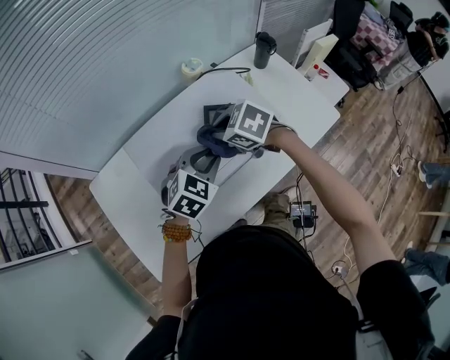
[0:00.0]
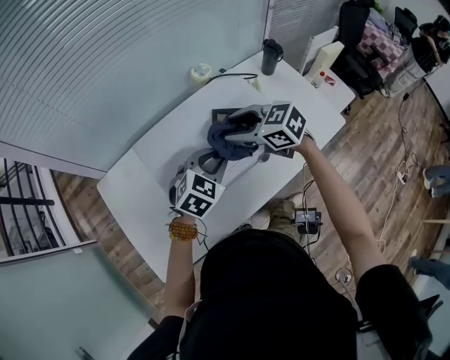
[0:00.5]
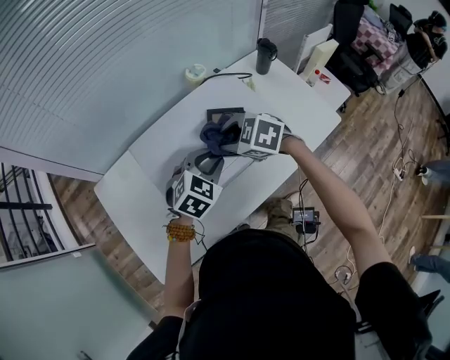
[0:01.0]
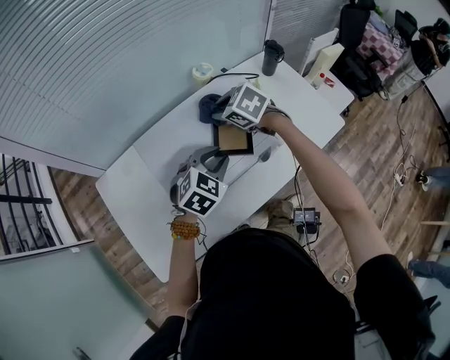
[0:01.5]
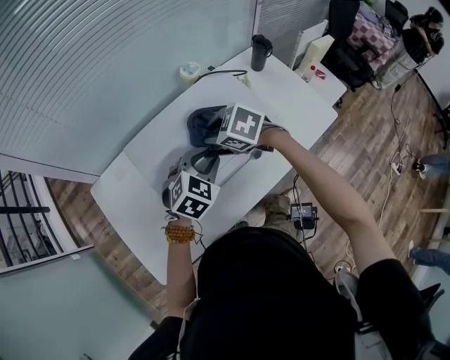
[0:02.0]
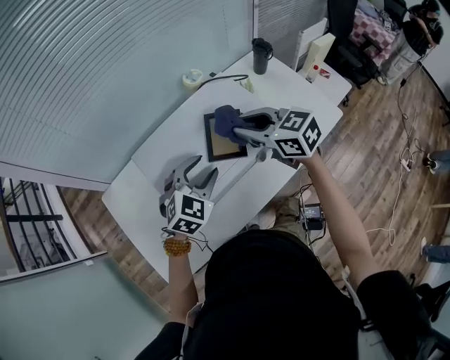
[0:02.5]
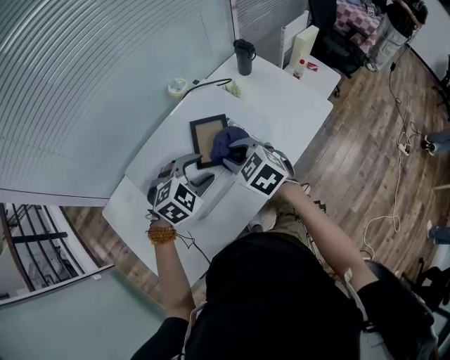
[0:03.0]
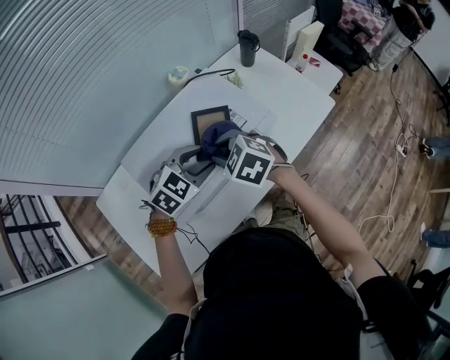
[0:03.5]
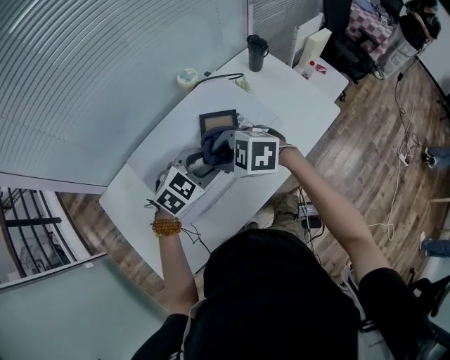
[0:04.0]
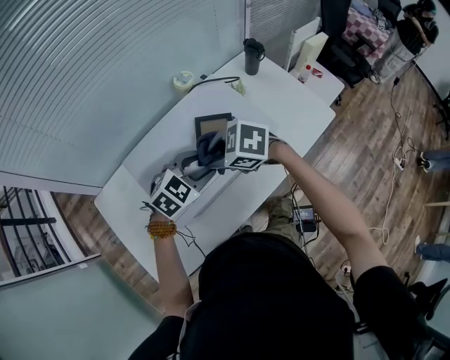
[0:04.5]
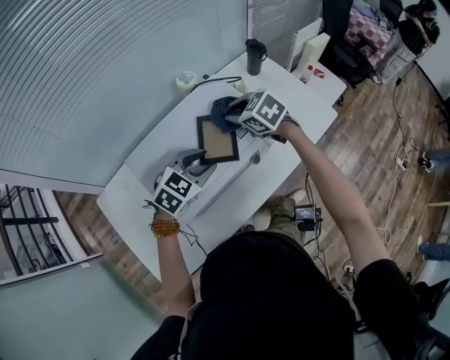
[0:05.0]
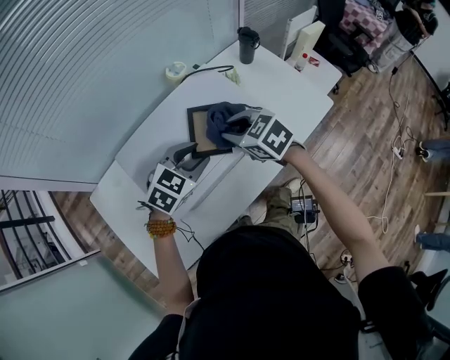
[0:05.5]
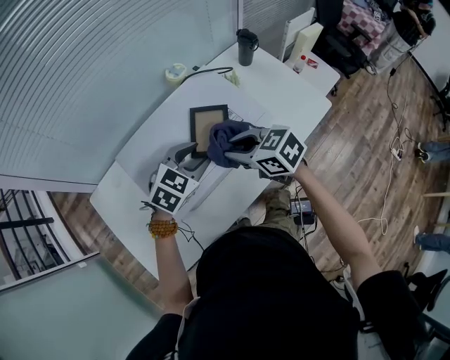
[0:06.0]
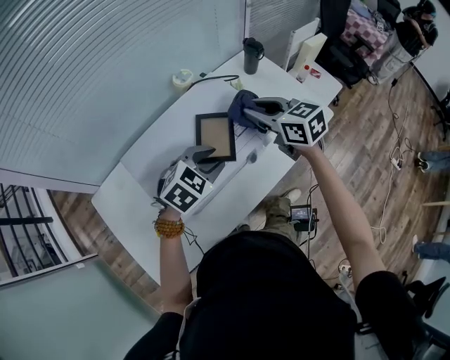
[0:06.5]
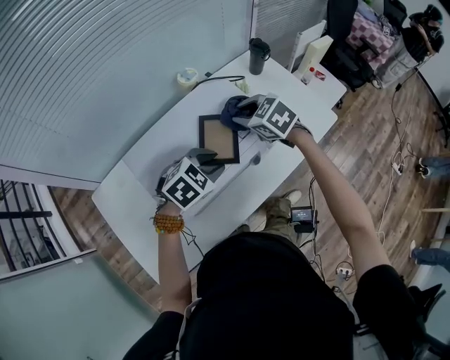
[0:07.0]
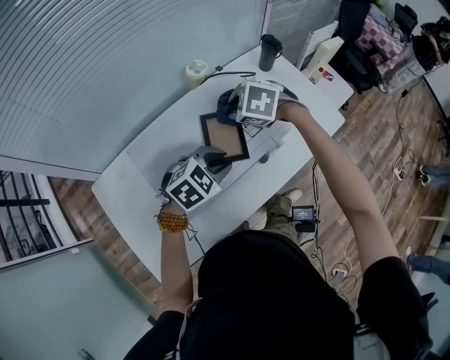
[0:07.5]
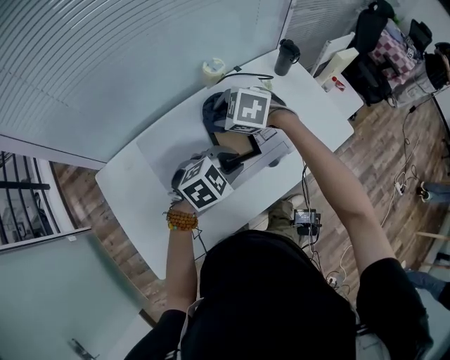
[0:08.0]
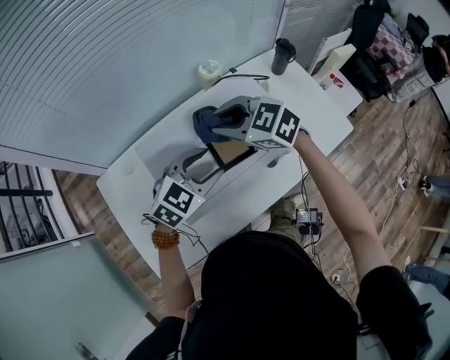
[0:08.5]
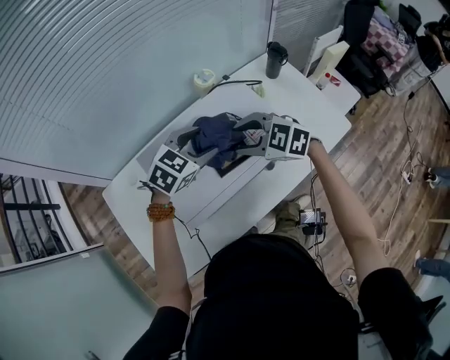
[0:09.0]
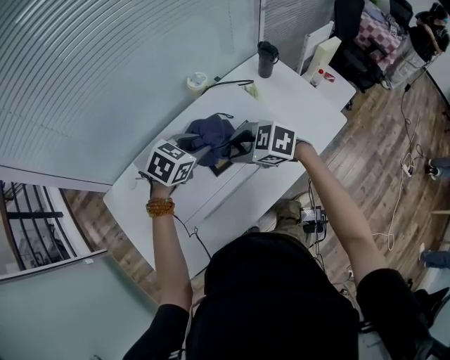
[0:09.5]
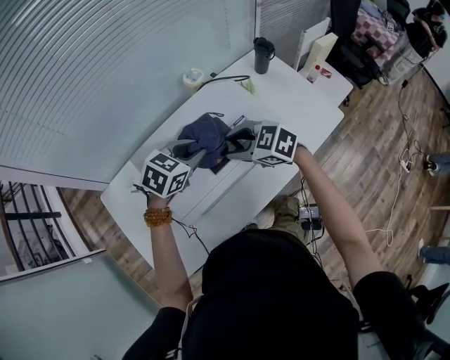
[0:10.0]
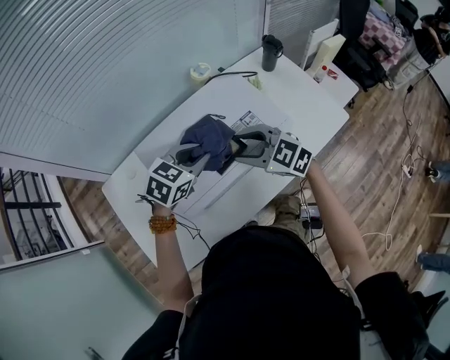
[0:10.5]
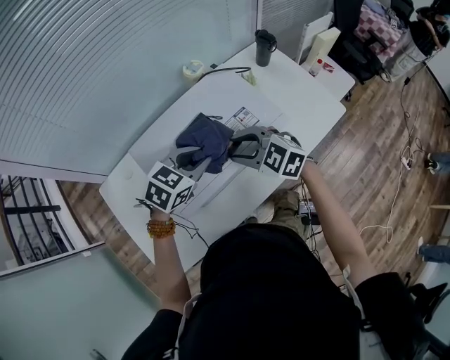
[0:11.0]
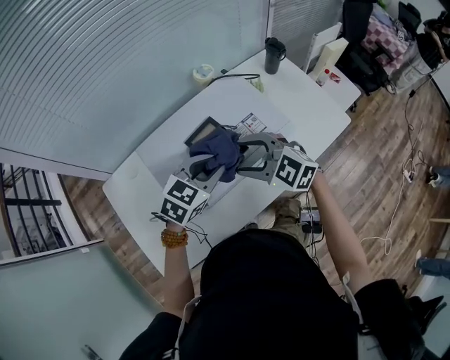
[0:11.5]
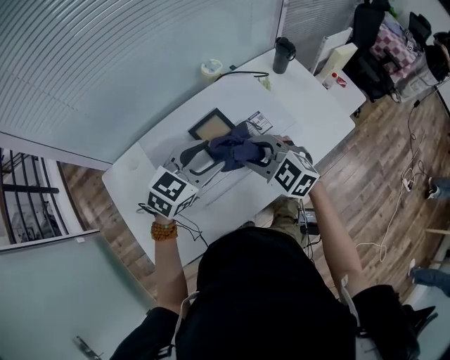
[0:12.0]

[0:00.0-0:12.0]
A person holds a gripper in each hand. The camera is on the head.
0:00.0 to 0:02.0: The right gripper goes forward and returns, some 5 cm each way, and opens, then closes once more.
0:02.0 to 0:04.0: The right gripper moves approximately 10 cm upward and comes back.
0:04.0 to 0:06.0: The right gripper changes its angle by about 40 degrees.
0:06.0 to 0:08.0: The right gripper shifts by approximately 15 cm, and rotates some 40 degrees.
0:08.0 to 0:10.0: The left gripper changes place by approximately 10 cm, and opens, then closes again, while the right gripper shifts by approximately 10 cm, and changes its angle by about 20 degrees.
0:10.0 to 0:12.0: The left gripper moves backward, some 5 cm, and opens. The right gripper swivels approximately 20 degrees.

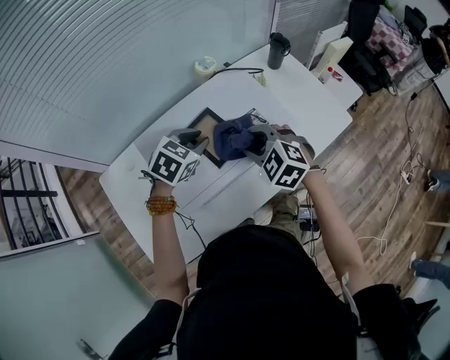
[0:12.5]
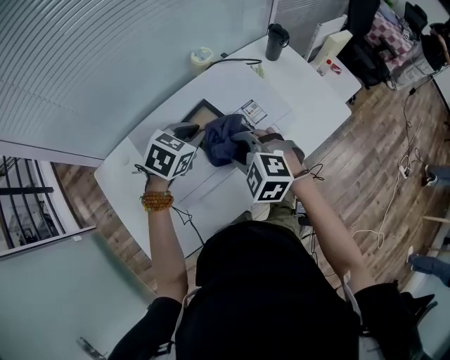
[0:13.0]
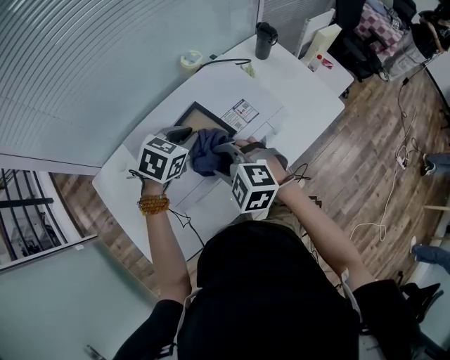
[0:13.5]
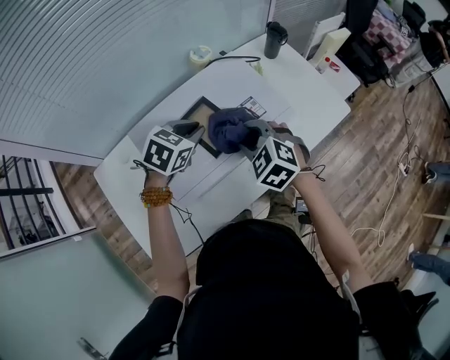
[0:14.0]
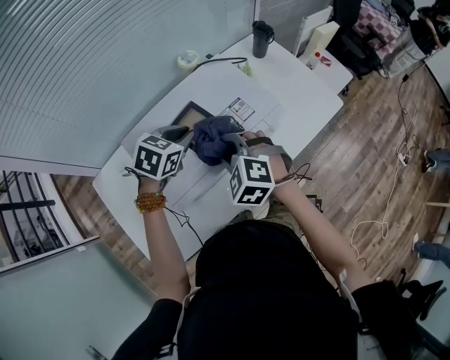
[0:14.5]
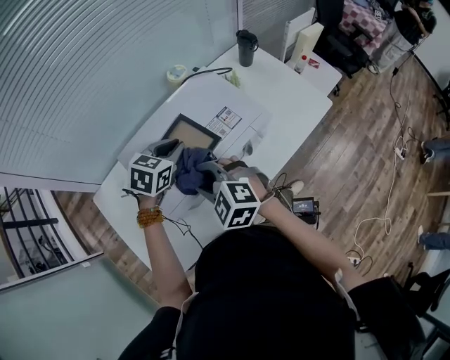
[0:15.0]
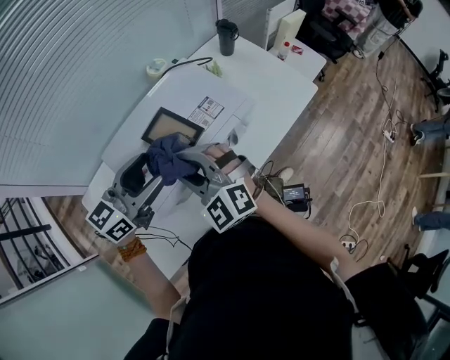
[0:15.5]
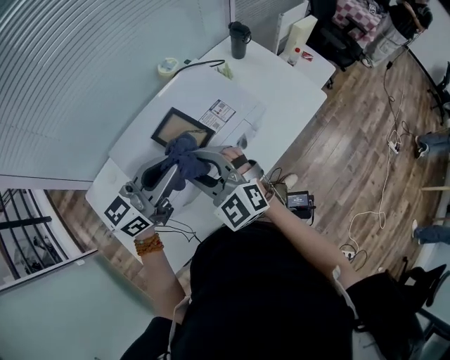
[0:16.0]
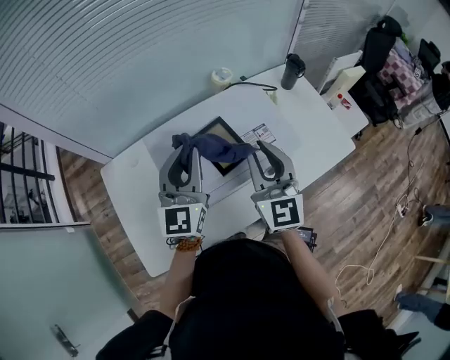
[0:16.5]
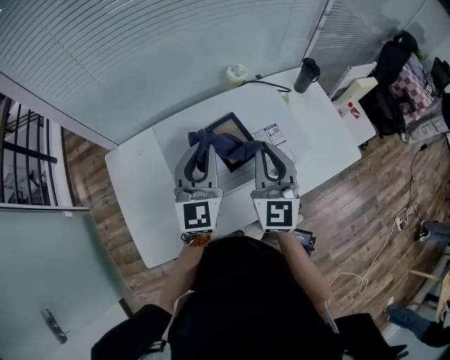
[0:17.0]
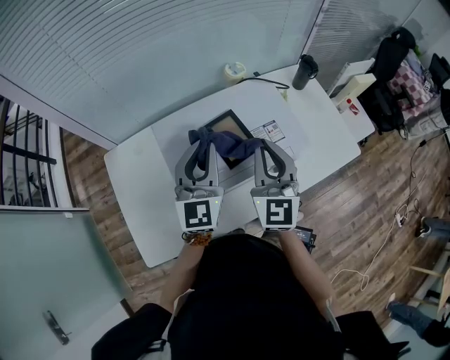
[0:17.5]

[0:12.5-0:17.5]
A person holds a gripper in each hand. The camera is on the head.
0:12.5 to 0:15.0: The right gripper swings left and right, roughly 10 cm each way, with 2 reversals.
0:15.0 to 0:17.5: The right gripper shifts some 15 cm upward, to the right and forward, and angles its fingers upward, by some 40 degrees. Meanwhile the left gripper heads upward and backward, covering approximately 15 cm, points its fingers roughly 50 degrees further upward, and opens, then closes again.

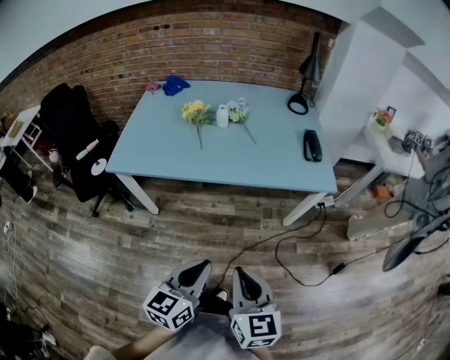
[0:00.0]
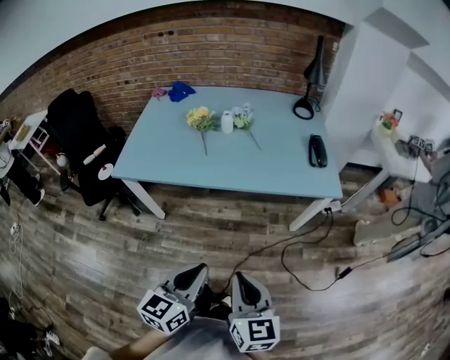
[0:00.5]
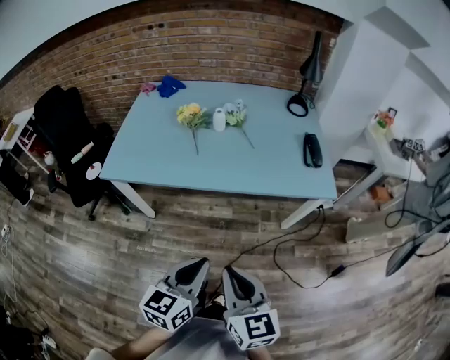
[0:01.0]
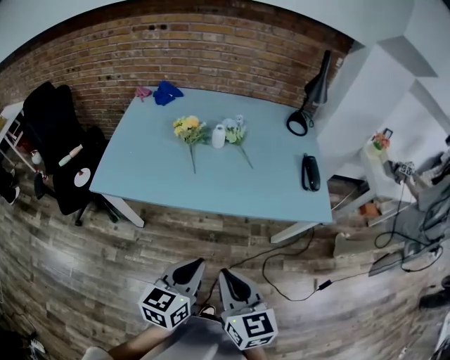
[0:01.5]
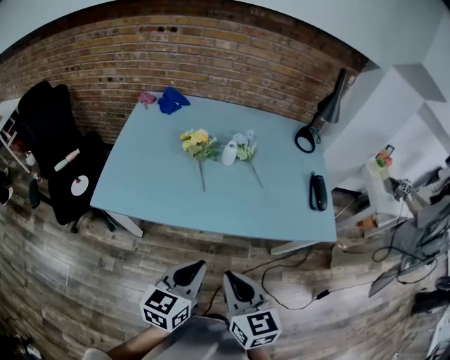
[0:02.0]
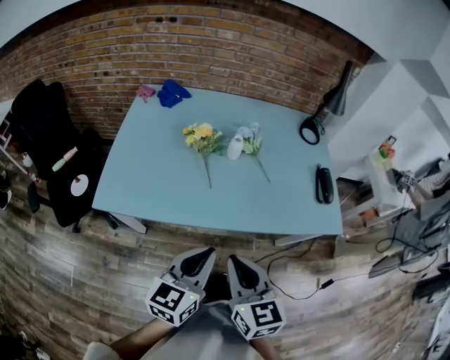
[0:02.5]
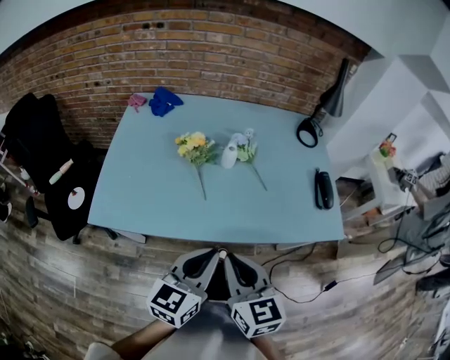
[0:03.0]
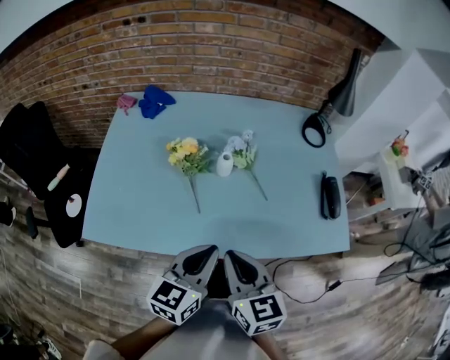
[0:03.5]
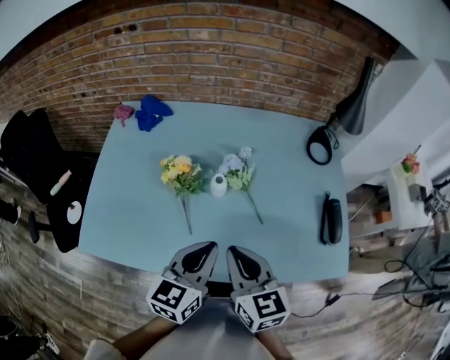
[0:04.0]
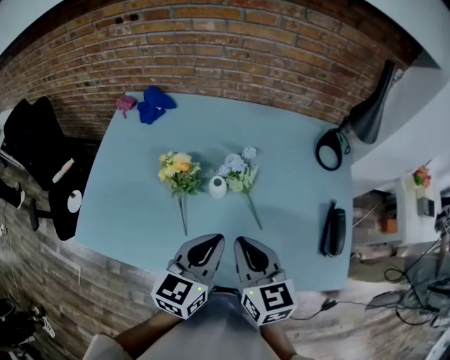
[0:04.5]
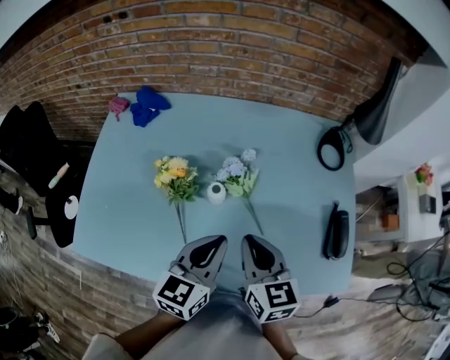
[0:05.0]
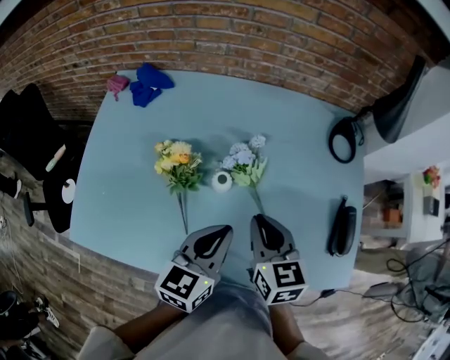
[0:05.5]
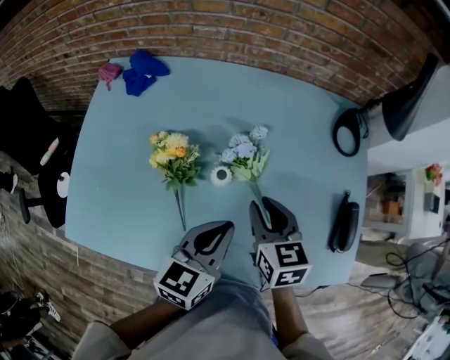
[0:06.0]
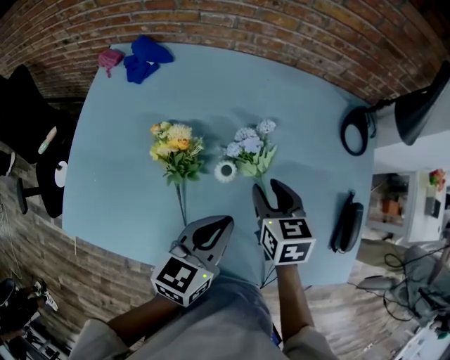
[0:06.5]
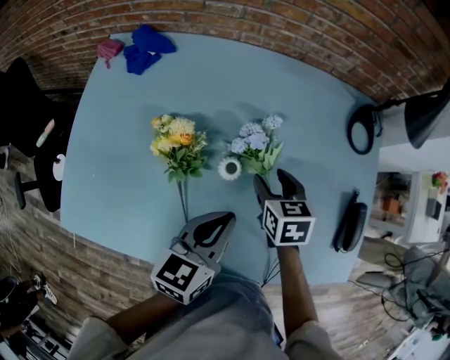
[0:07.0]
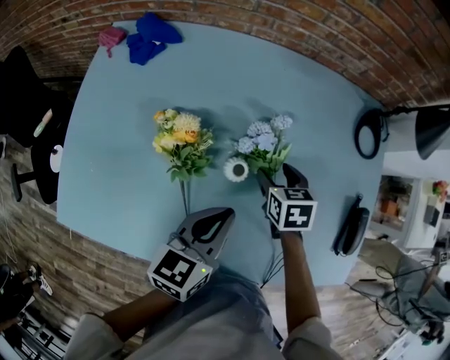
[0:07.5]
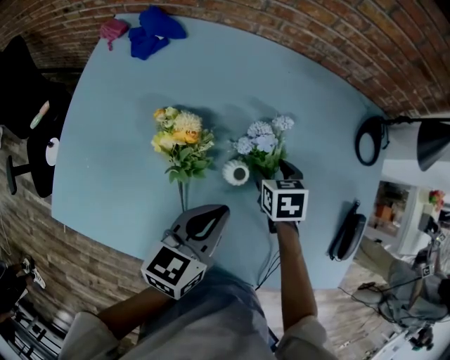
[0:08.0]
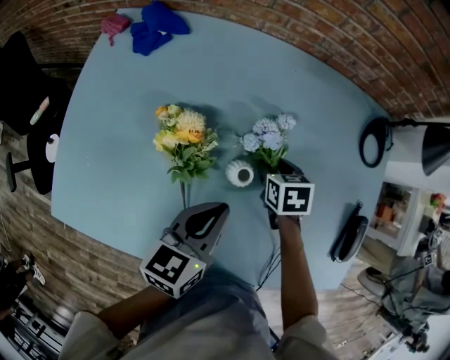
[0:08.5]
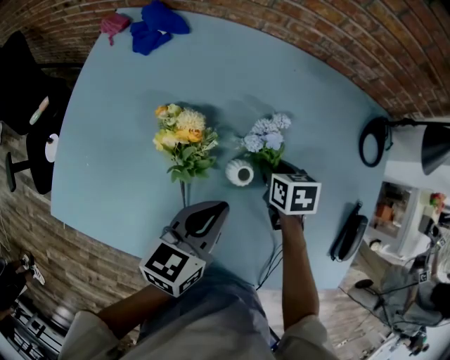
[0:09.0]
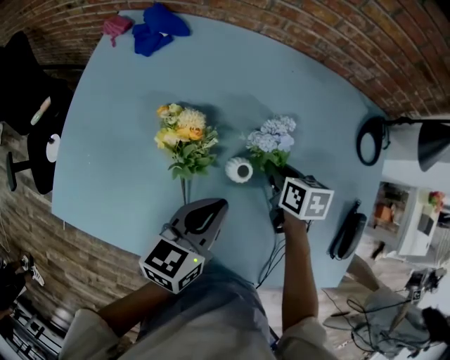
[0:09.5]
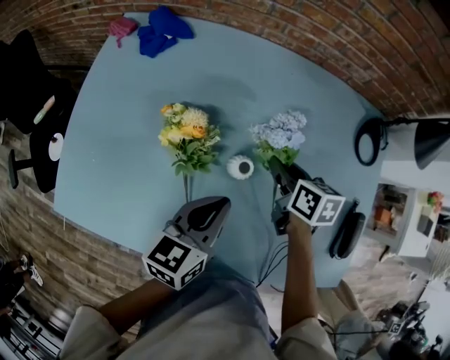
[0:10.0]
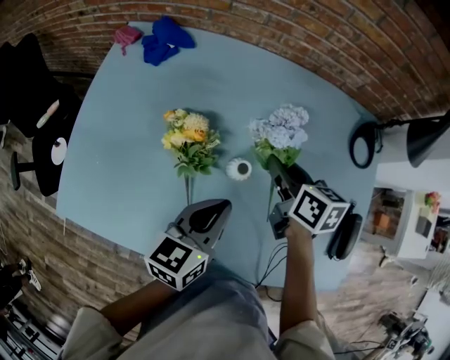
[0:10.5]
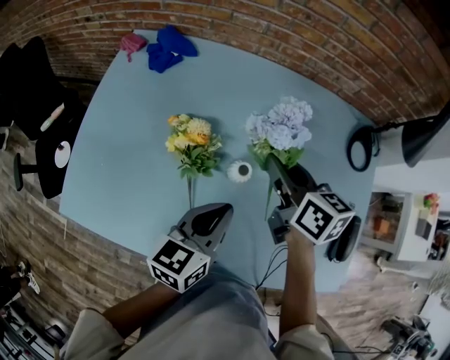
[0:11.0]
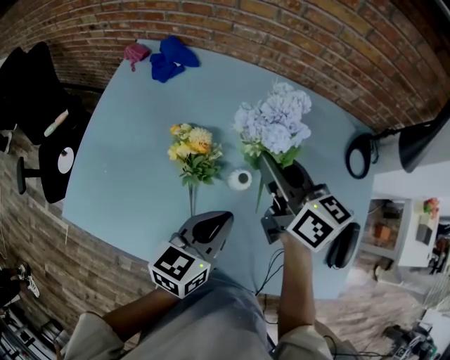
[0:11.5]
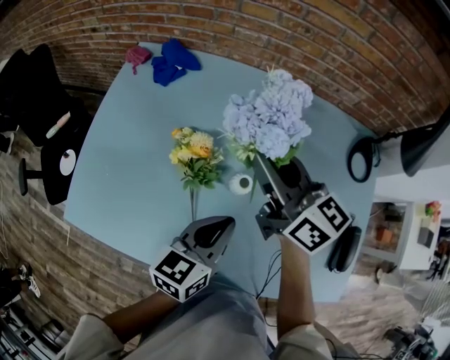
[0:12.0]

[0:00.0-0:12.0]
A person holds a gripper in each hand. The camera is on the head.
0:00.0 to 0:02.0: Both grippers move forward and to the left, some 25 cm.
0:02.0 to 0:04.0: The grippers both shift forward by about 30 cm.
0:04.0 to 0:06.0: The right gripper is displaced forward and downward by some 20 cm. The left gripper travels forward and downward by roughly 10 cm.
0:06.0 to 0:08.0: The left gripper shifts by some 5 cm. The right gripper is displaced downward and forward by roughly 20 cm, rotates approximately 30 degrees, and opens its fingers.
0:08.0 to 0:10.0: The right gripper heads upward, covering about 5 cm, swivels about 30 degrees, and closes.
0:10.0 to 0:12.0: The right gripper moves upward and to the left, about 25 cm, and tips its fingers upward by about 40 degrees.
